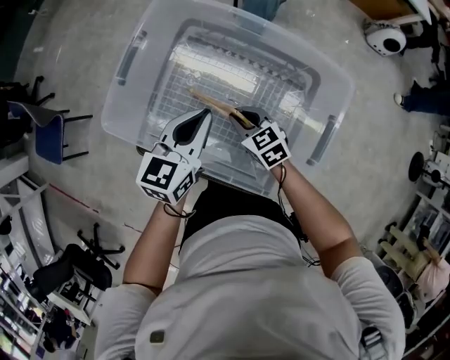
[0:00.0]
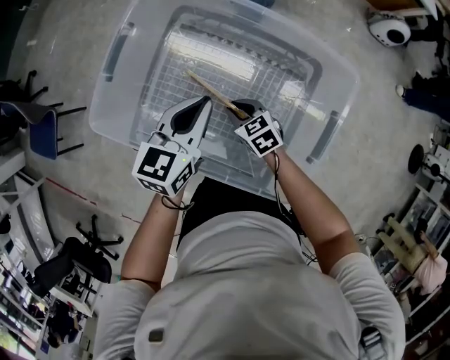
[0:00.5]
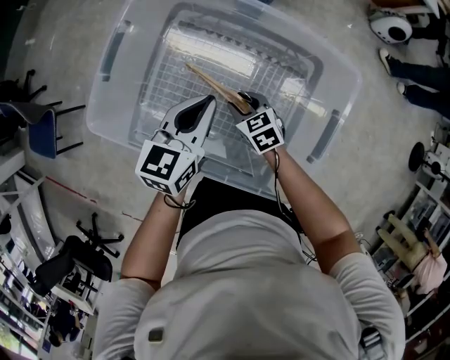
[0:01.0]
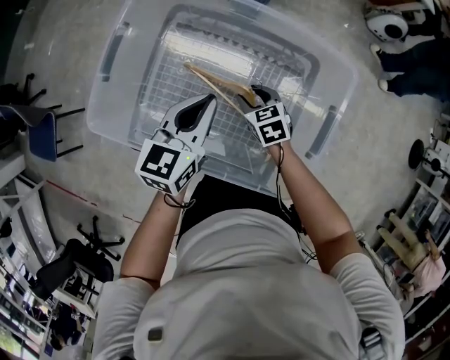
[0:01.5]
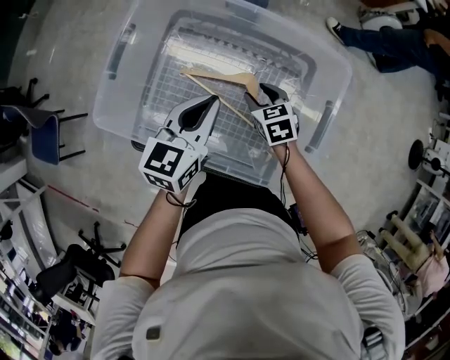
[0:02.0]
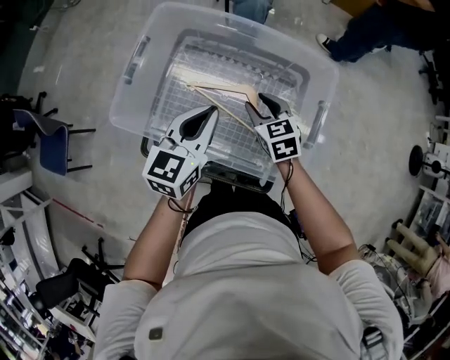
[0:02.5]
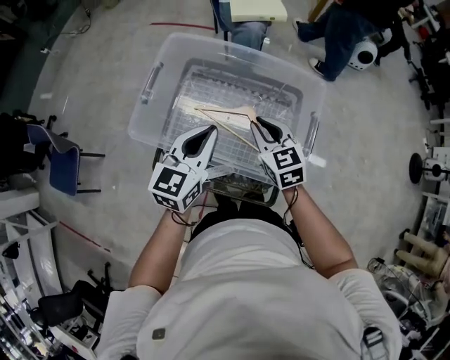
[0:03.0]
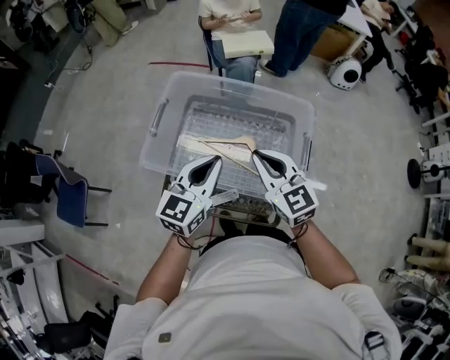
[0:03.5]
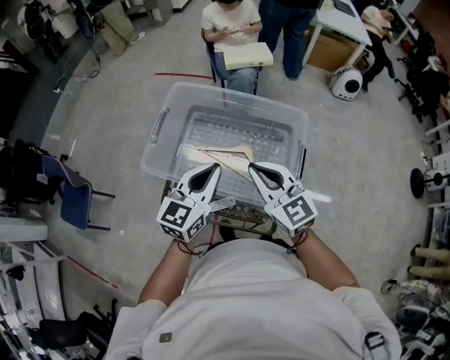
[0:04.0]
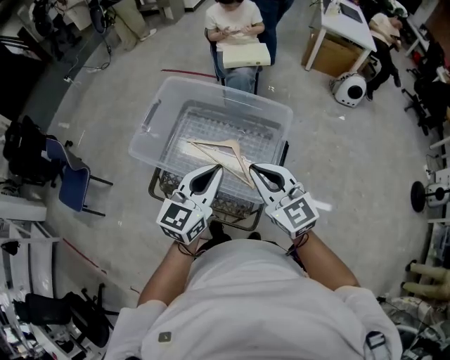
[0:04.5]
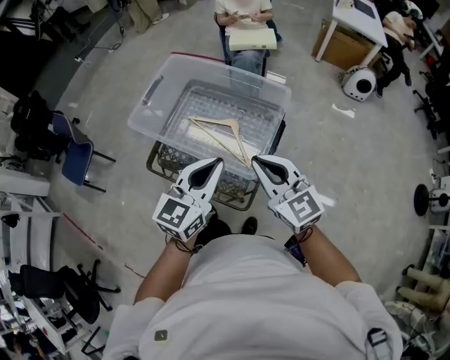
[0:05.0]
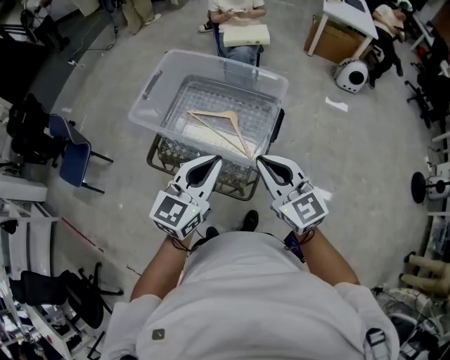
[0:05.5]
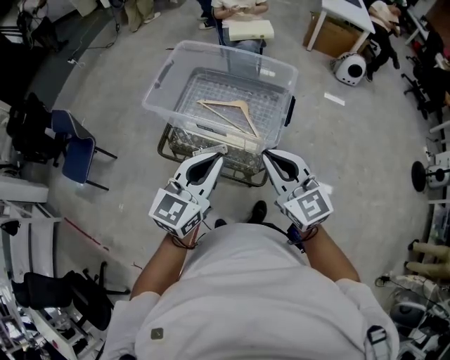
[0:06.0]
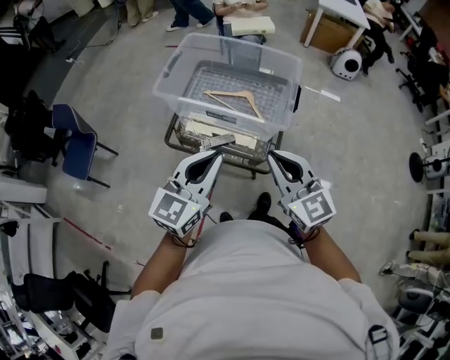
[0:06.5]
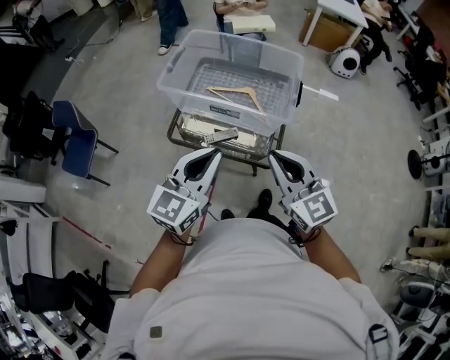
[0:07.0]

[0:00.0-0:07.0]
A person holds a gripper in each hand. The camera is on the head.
0:00.0 to 0:02.0: The right gripper is displaced to the right by some 10 cm, rotates about 20 degrees, and opens.
0:02.0 to 0:03.5: The left gripper shifts some 20 cm upward and backward. The right gripper shifts some 35 cm upward, angles its fingers upward, by about 40 degrees, and closes up.
0:03.5 to 0:05.0: Both grippers travel together to the right and backward, approximately 25 cm.
0:05.0 to 0:07.0: Both grippers travel together backward and to the left, about 25 cm.

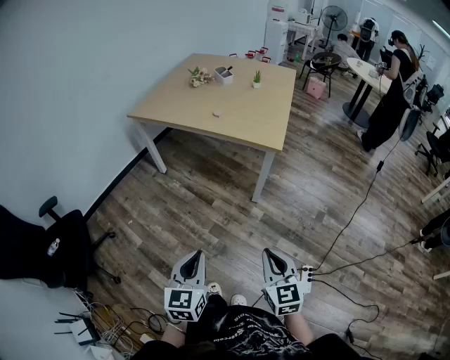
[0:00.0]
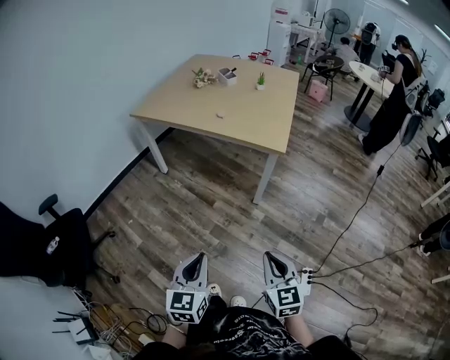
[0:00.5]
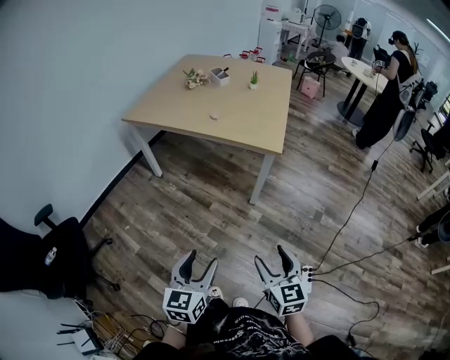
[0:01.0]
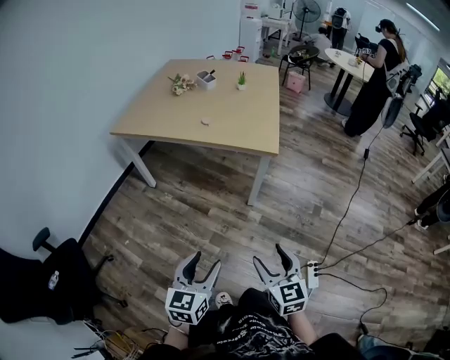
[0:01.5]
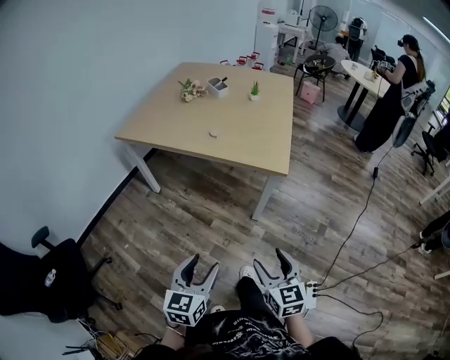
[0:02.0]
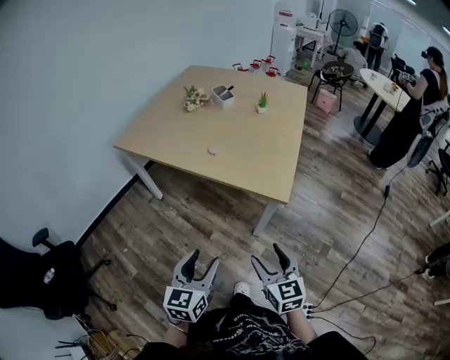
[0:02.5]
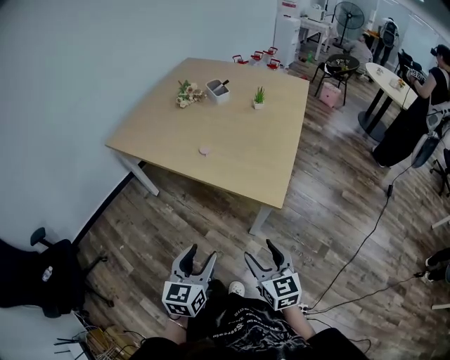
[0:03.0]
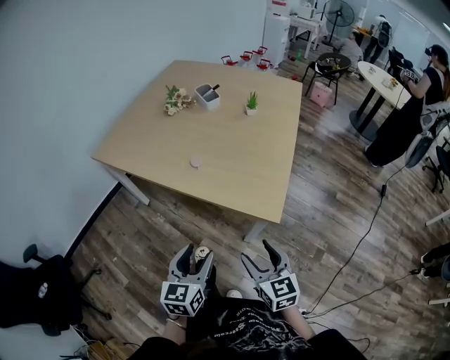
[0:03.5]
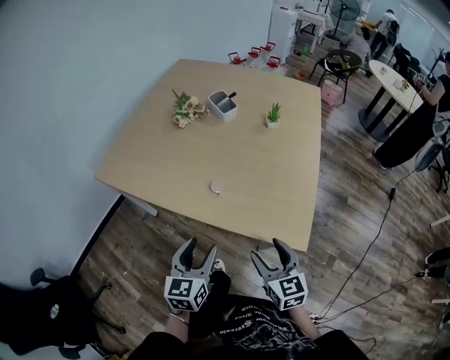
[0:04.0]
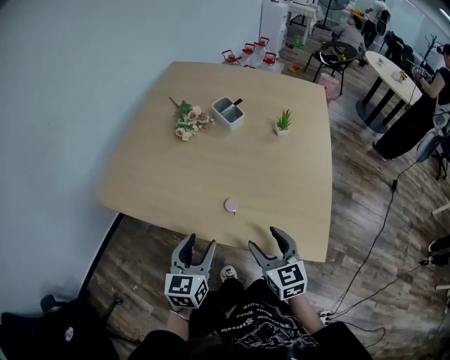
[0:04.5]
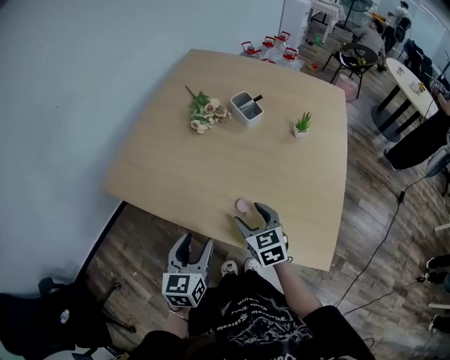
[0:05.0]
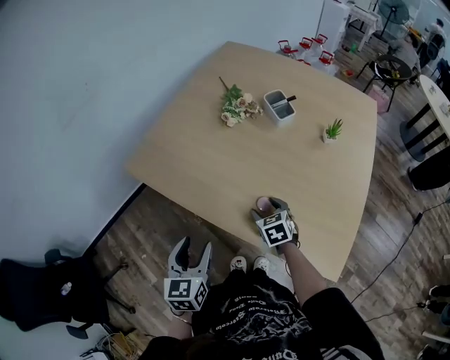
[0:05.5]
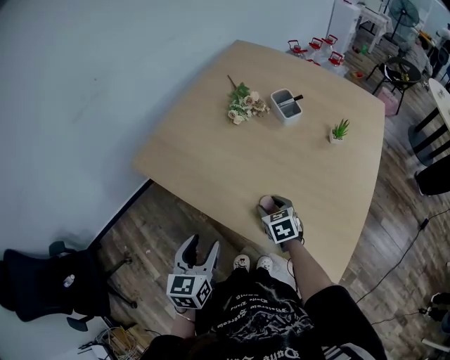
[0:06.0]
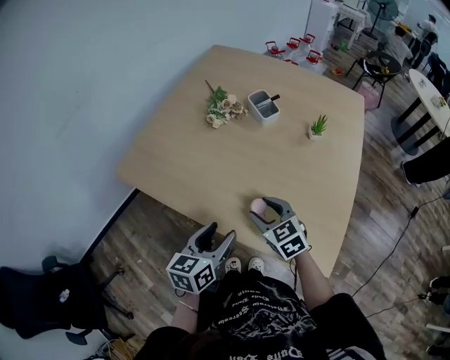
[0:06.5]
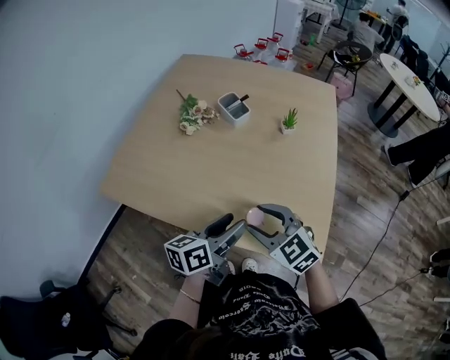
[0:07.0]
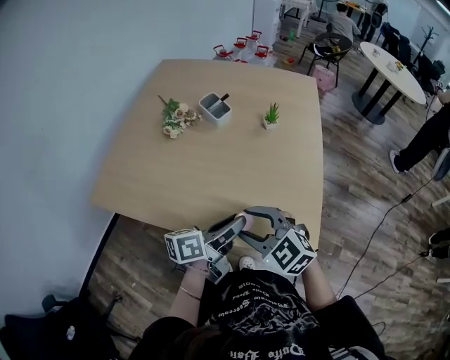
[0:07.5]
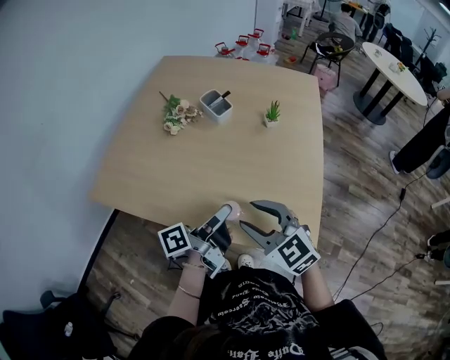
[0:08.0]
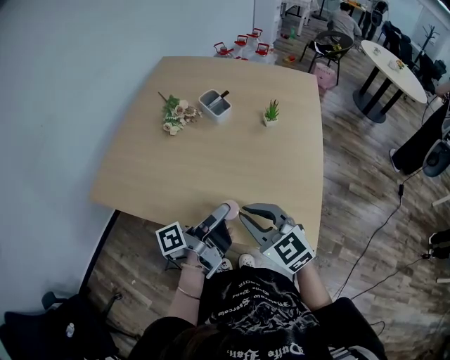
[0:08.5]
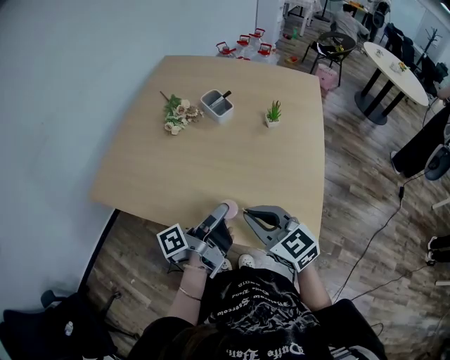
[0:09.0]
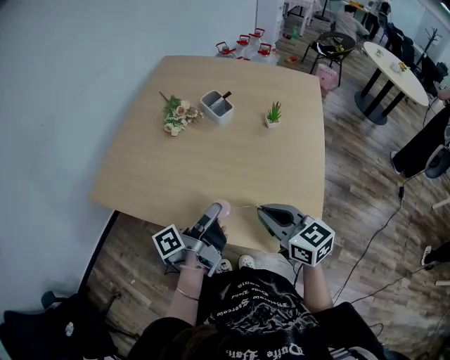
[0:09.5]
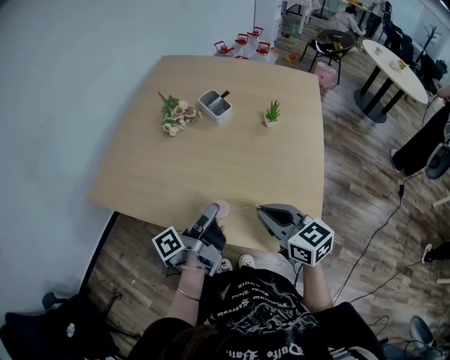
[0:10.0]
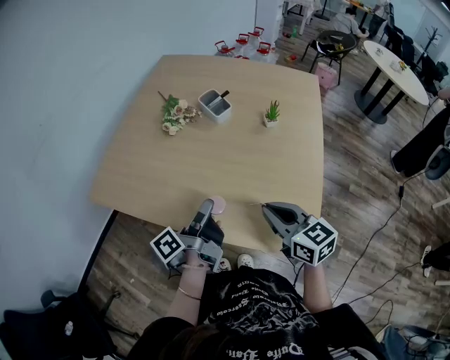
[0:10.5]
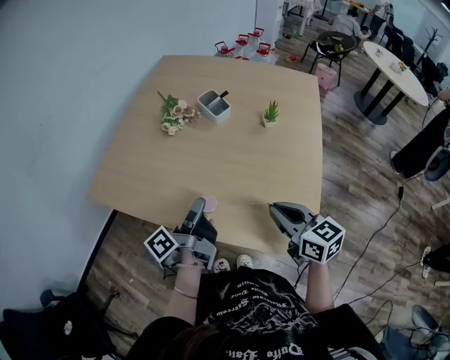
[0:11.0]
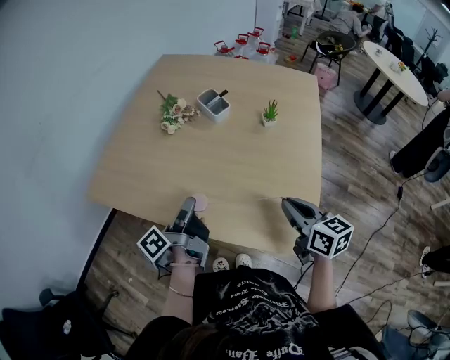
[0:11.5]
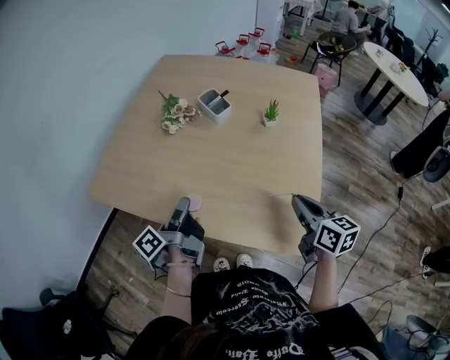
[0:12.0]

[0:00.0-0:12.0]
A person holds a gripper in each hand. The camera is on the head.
0:00.0 to 0:02.0: Both grippers move forward, some 15 cm. The left gripper opens its fingers; the right gripper opens its fingers.
0:02.0 to 0:04.0: The pair of grippers is taken forward, roughly 40 cm.
0:04.0 to 0:06.0: The left gripper goes roughly 15 cm to the left and forward, while the right gripper heads forward, downward and to the left, covering some 30 cm, and turns by approximately 30 degrees.
0:06.0 to 0:08.0: The right gripper is displaced upward and backward by about 25 cm, and rotates some 30 degrees. The left gripper goes about 20 cm to the right, swivels roughly 80 degrees, and closes up.
0:08.0 to 0:10.0: The right gripper ends up about 5 cm from where it was, changes its angle by approximately 30 degrees, and closes its fingers.
0:10.0 to 0:12.0: The right gripper moves to the right, about 10 cm, and changes its angle by some 30 degrees; the left gripper goes approximately 5 cm to the left.

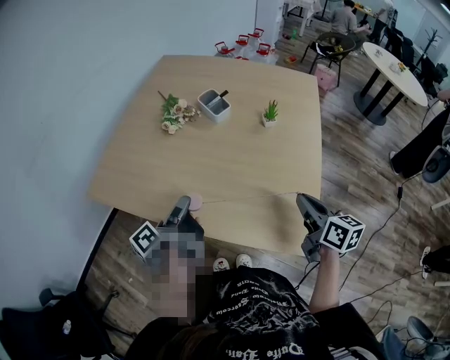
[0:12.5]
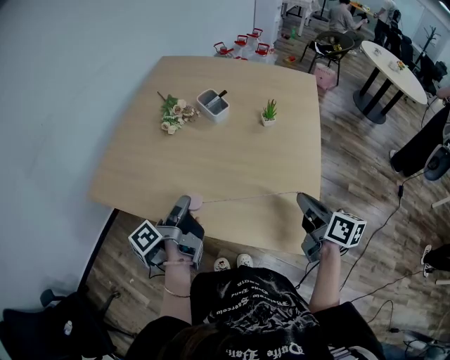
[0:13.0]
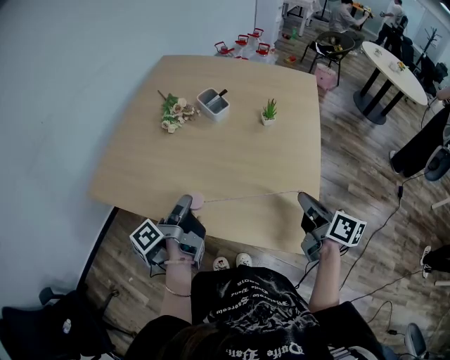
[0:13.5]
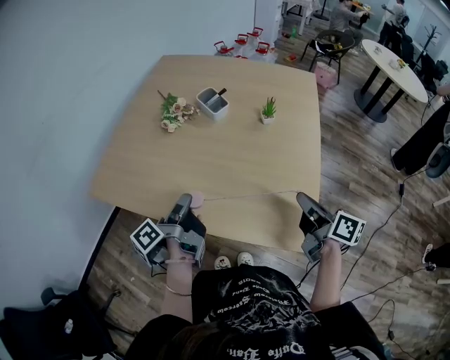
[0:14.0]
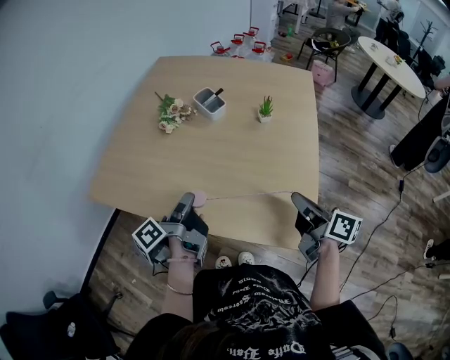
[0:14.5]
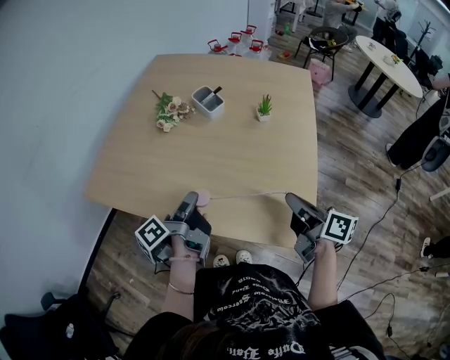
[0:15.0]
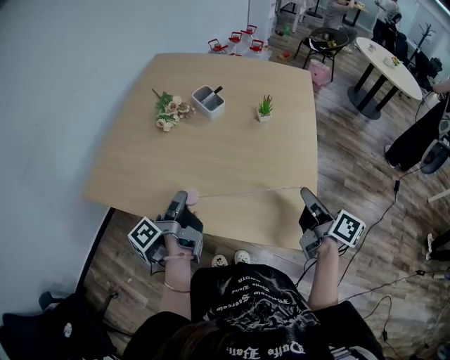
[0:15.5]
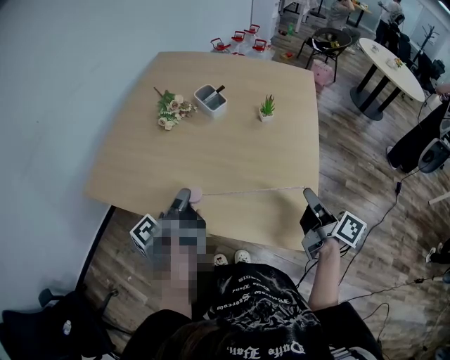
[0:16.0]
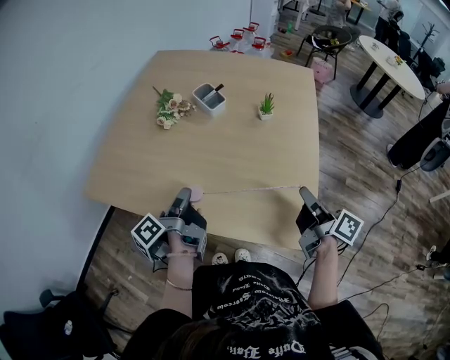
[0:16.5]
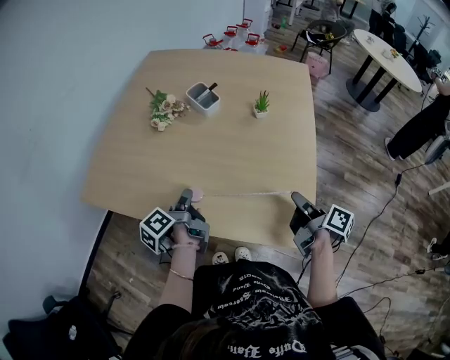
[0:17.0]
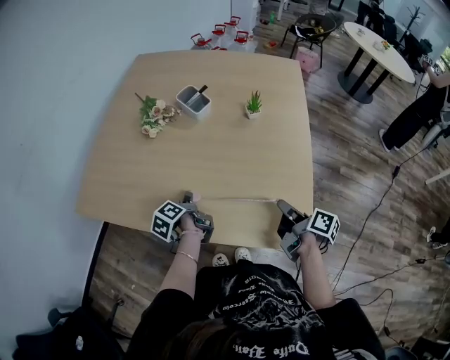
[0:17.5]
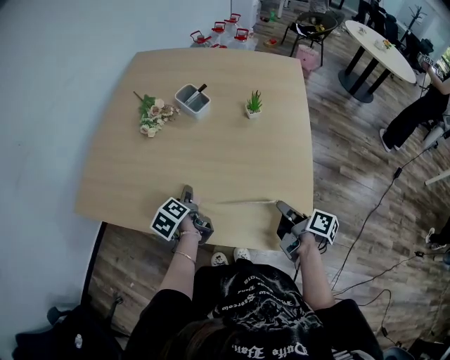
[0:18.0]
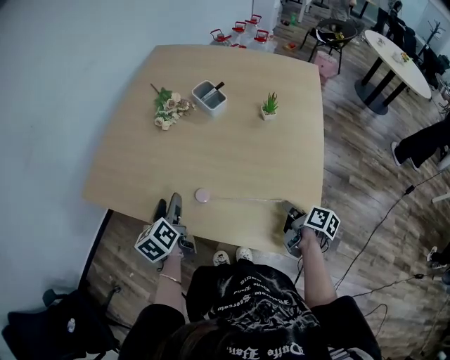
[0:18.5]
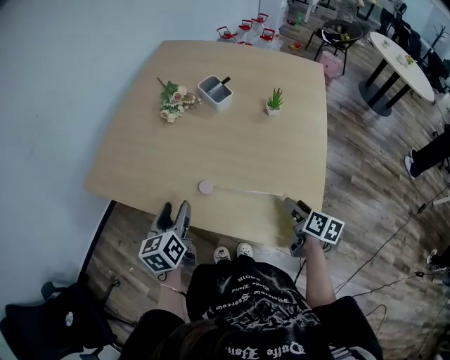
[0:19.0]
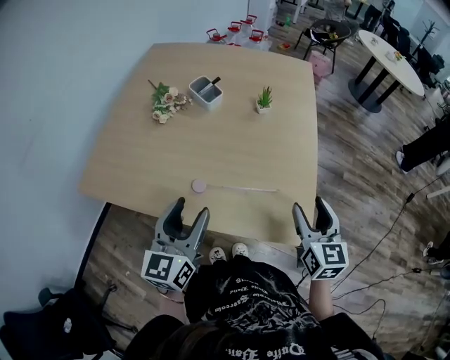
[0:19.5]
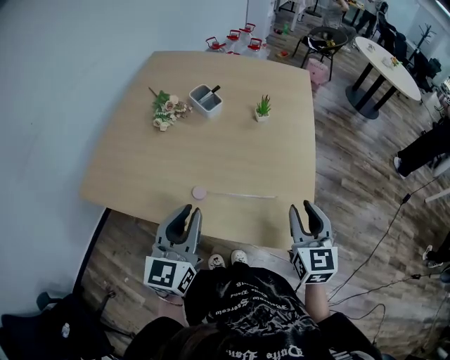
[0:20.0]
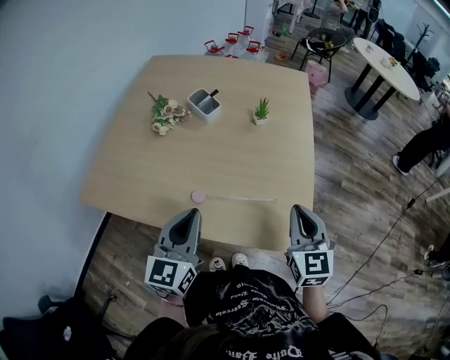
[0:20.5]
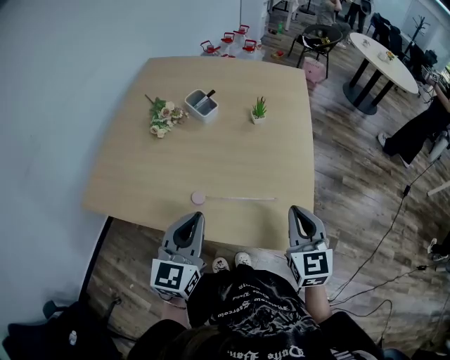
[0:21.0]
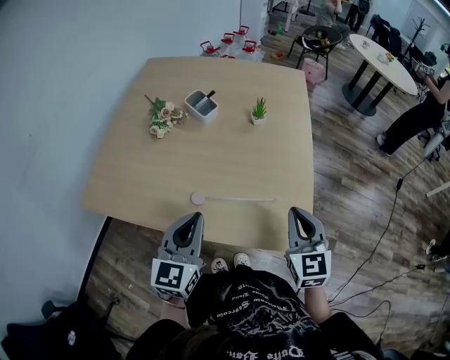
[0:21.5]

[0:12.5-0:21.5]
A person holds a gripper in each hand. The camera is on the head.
0:12.5 to 0:14.5: The right gripper rotates approximately 20 degrees.
0:14.5 to 0:17.0: Both grippers travel together downward, some 10 cm. The right gripper rotates some 30 degrees.
0:17.0 to 0:19.5: The right gripper goes approximately 10 cm upward, twists about 60 degrees counterclockwise, seen from behind, and opens. The left gripper is displaced upward and backward by roughly 15 cm, rotates around the line of its fingers by roughly 70 degrees, clockwise from behind, and opens its fingers.
0:19.5 to 0:21.5: The right gripper closes; the left gripper closes up.
